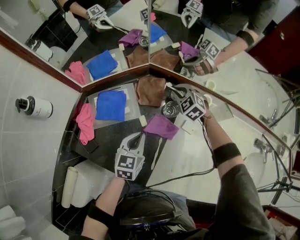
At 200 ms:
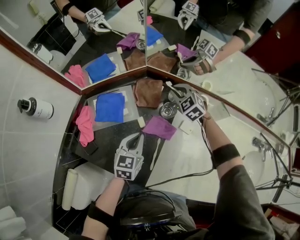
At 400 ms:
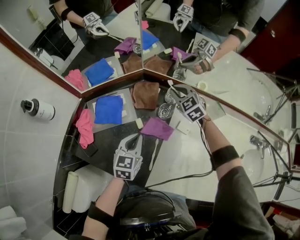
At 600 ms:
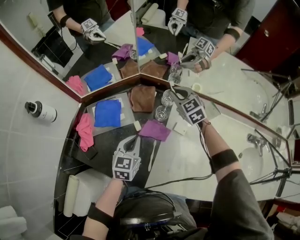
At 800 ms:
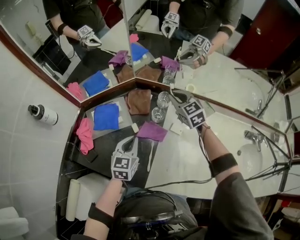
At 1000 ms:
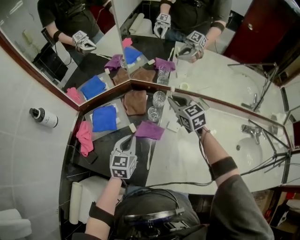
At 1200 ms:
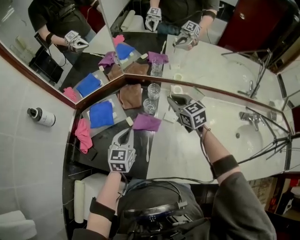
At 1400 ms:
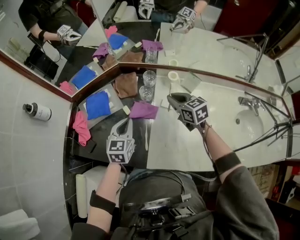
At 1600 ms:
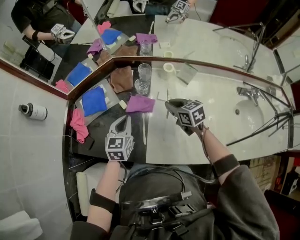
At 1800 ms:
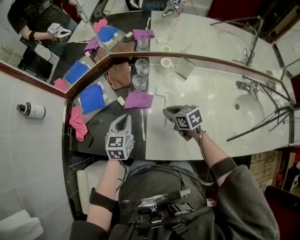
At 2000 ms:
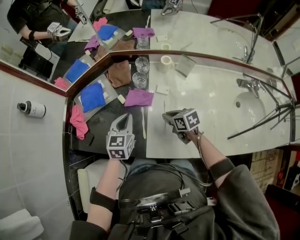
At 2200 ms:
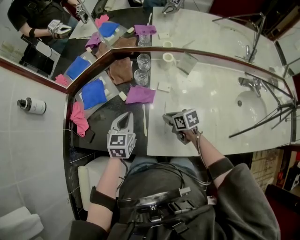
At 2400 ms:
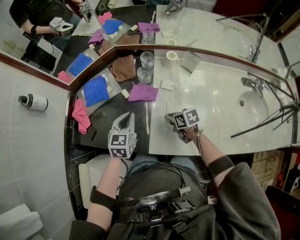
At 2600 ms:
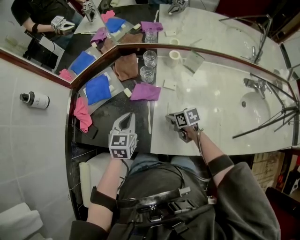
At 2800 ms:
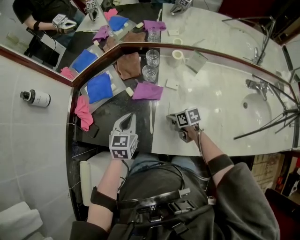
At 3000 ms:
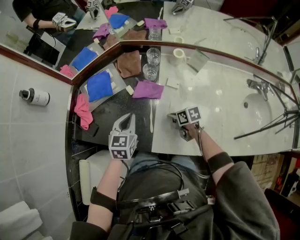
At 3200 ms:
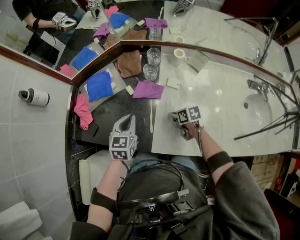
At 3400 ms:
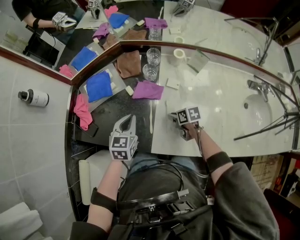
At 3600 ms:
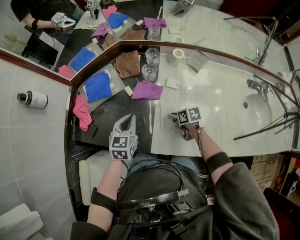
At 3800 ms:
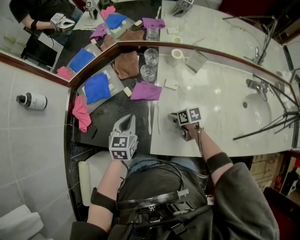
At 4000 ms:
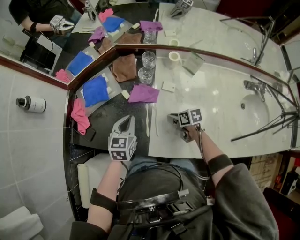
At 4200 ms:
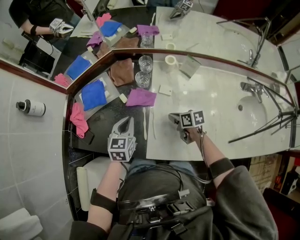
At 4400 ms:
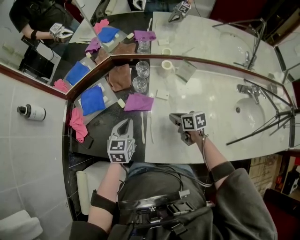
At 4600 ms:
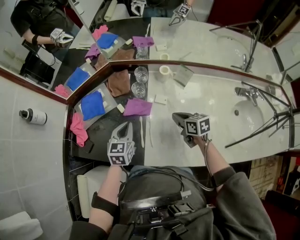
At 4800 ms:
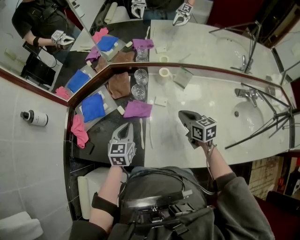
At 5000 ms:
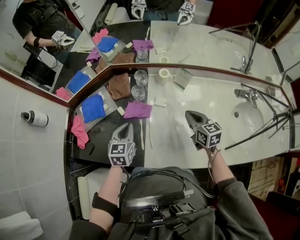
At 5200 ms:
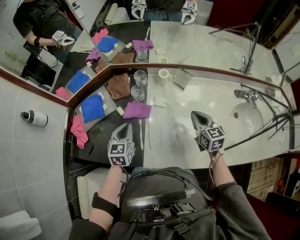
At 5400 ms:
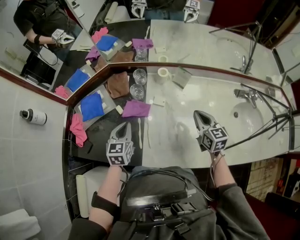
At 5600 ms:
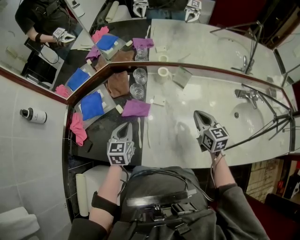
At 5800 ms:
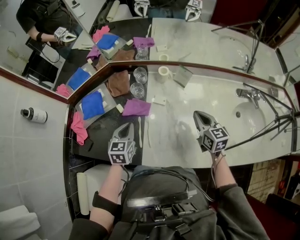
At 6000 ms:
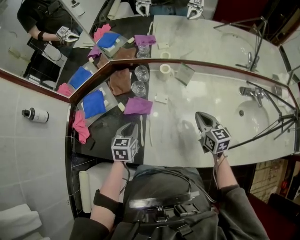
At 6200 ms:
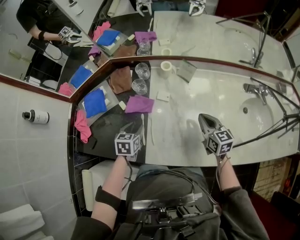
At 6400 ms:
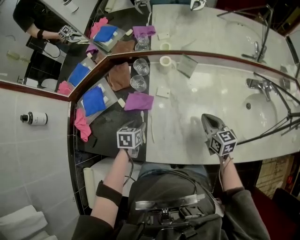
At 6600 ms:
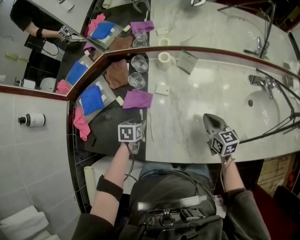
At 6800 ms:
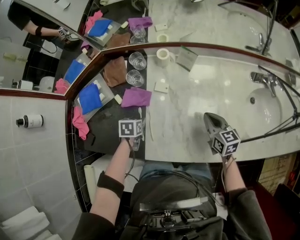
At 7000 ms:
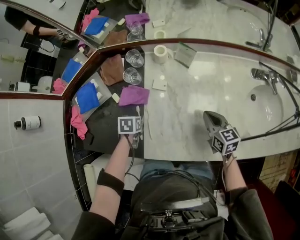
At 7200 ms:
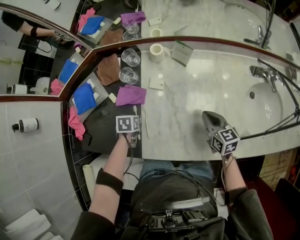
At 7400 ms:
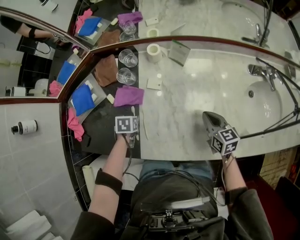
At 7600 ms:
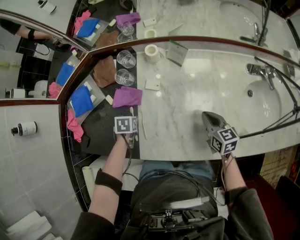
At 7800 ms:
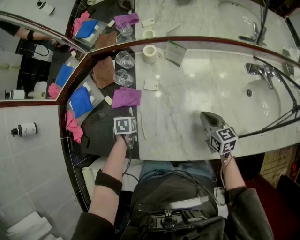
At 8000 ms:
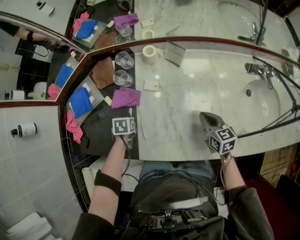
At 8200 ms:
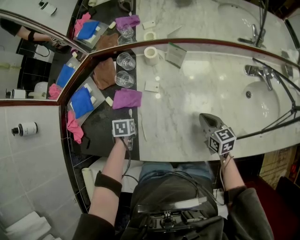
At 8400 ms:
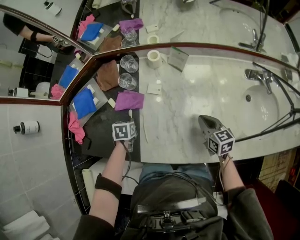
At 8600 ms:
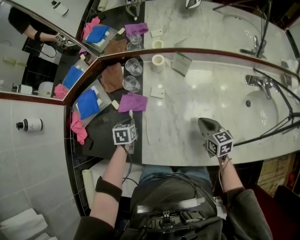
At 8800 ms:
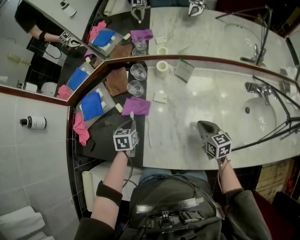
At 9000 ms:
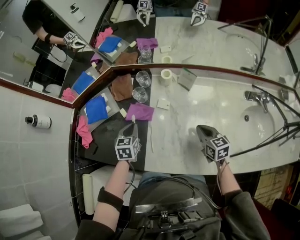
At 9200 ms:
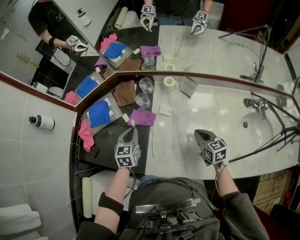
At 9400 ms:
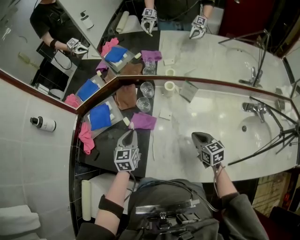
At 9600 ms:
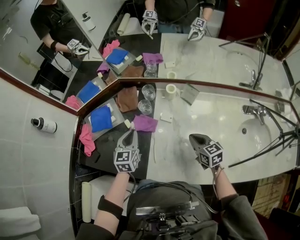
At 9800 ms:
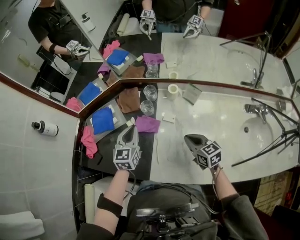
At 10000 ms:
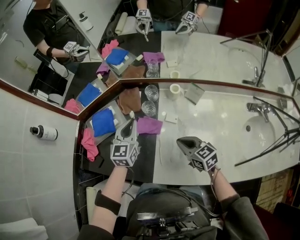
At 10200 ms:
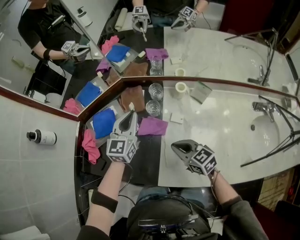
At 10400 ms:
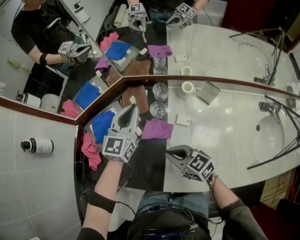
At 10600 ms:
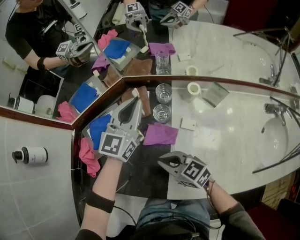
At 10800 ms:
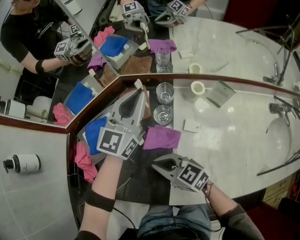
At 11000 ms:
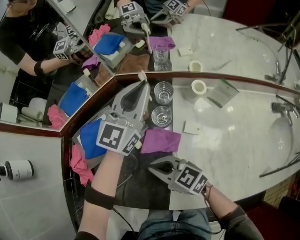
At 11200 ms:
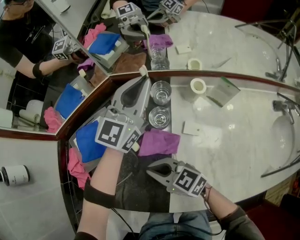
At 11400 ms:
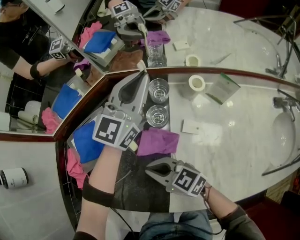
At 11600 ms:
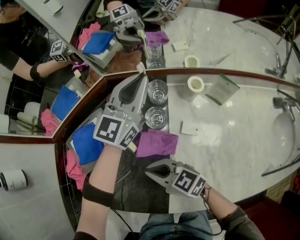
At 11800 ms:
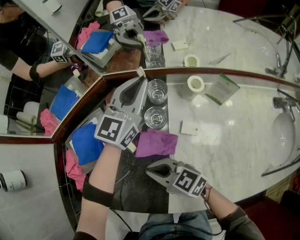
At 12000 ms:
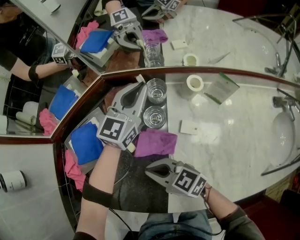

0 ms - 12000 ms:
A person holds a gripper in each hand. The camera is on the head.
0 ms - 1600 ms: The right gripper shifts approximately 25 cm backward, and rotates around the line of its fingers by about 50 degrees, clockwise from behind, while the left gripper ends up about 5 cm from where it was.
1600 ms - 3000 ms: The left gripper ends up some 5 cm from where it was; the right gripper is displaced downward, backward and to the left by some 20 cm, and rotates approximately 30 degrees.
3000 ms - 4400 ms: The right gripper goes approximately 10 cm to the right and upward.
4400 ms - 6000 ms: The right gripper is displaced to the right and upward by roughly 15 cm, and changes its angle by about 30 degrees.
6000 ms - 7600 ms: The left gripper moves downward, some 15 cm, tilts its fingers about 40 degrees downward, and opens. The right gripper shifts roughly 10 cm downward.
7600 ms - 9000 ms: The right gripper shifts by roughly 5 cm; the left gripper goes roughly 15 cm upward, angles its fingers upward, by approximately 30 degrees, and closes up.
9000 ms - 10400 ms: The right gripper travels to the left by some 25 cm, and turns by some 30 degrees; the left gripper shifts roughly 20 cm forward and upward, and tilts its fingers some 40 degrees upward.
10400 ms - 12000 ms: The right gripper shifts some 10 cm downward and to the left; the left gripper moves downward, to the right and forward, approximately 15 cm.

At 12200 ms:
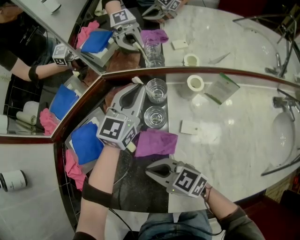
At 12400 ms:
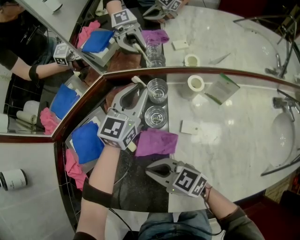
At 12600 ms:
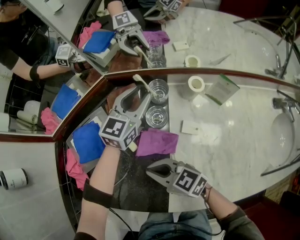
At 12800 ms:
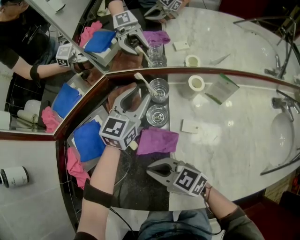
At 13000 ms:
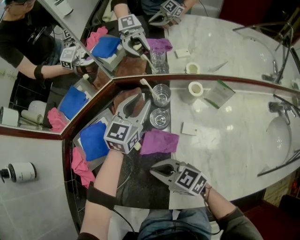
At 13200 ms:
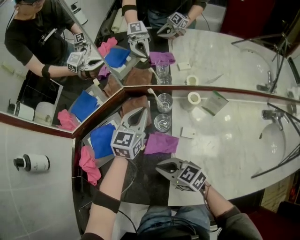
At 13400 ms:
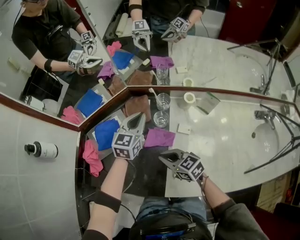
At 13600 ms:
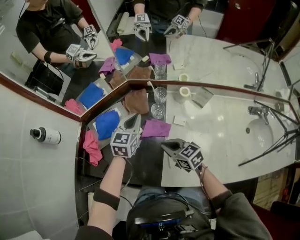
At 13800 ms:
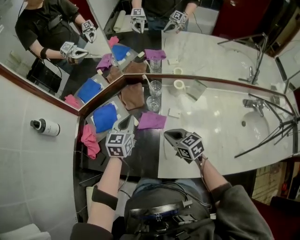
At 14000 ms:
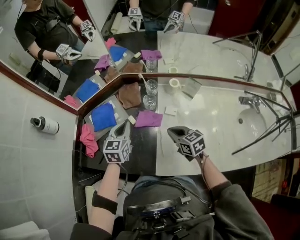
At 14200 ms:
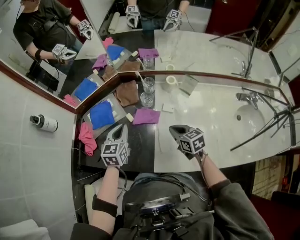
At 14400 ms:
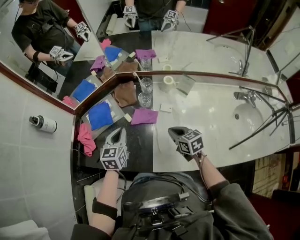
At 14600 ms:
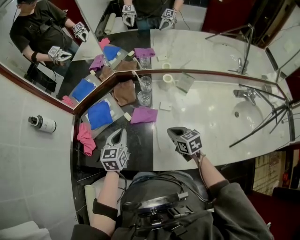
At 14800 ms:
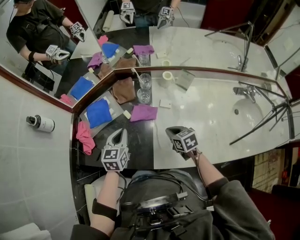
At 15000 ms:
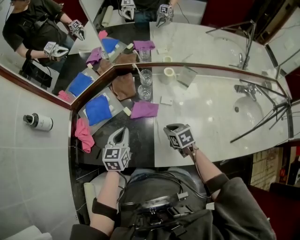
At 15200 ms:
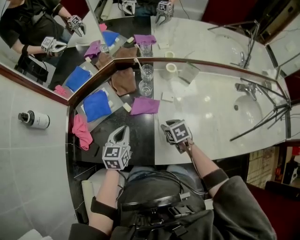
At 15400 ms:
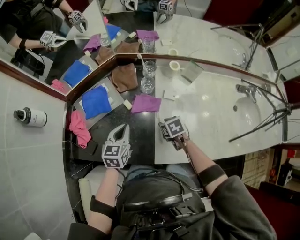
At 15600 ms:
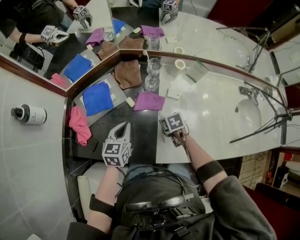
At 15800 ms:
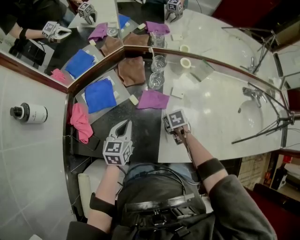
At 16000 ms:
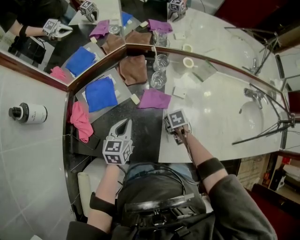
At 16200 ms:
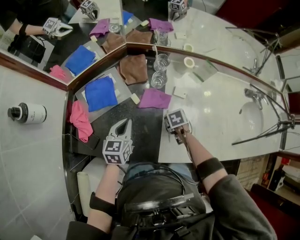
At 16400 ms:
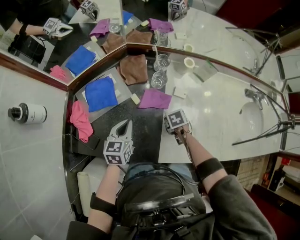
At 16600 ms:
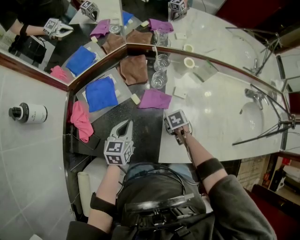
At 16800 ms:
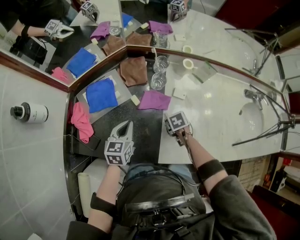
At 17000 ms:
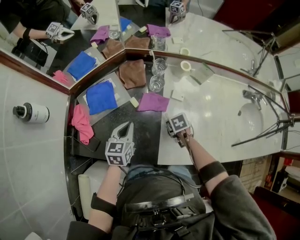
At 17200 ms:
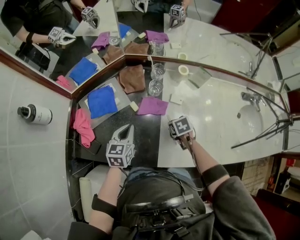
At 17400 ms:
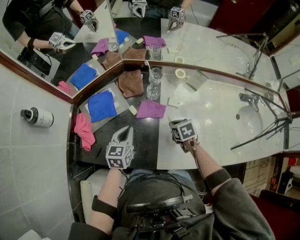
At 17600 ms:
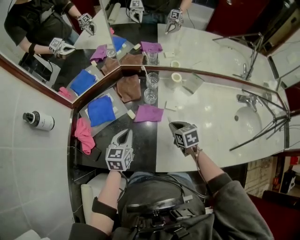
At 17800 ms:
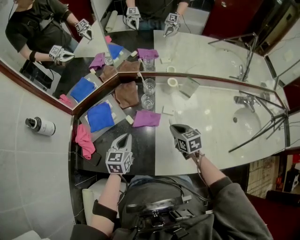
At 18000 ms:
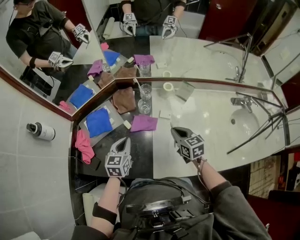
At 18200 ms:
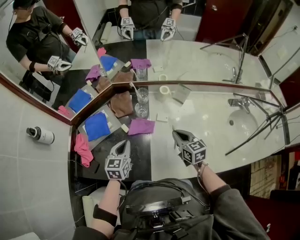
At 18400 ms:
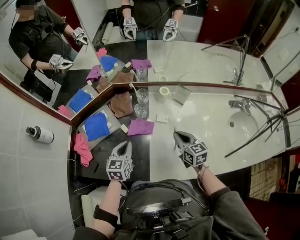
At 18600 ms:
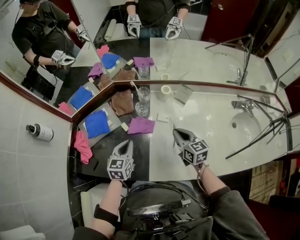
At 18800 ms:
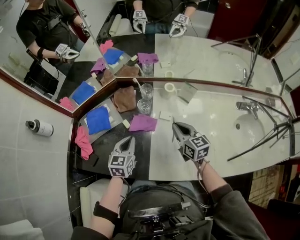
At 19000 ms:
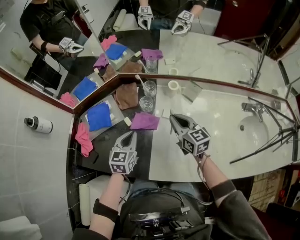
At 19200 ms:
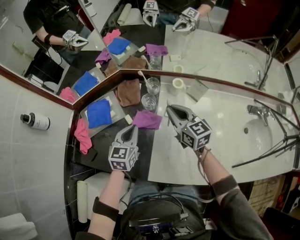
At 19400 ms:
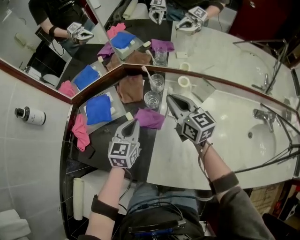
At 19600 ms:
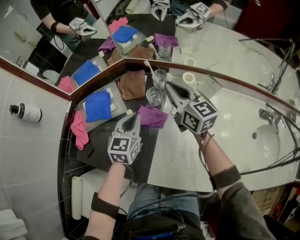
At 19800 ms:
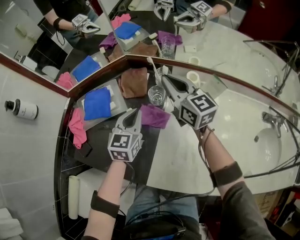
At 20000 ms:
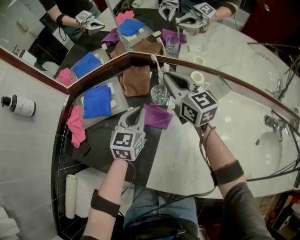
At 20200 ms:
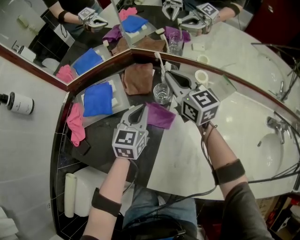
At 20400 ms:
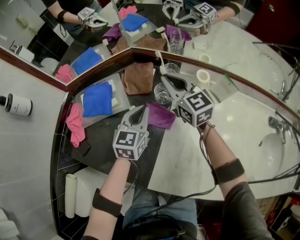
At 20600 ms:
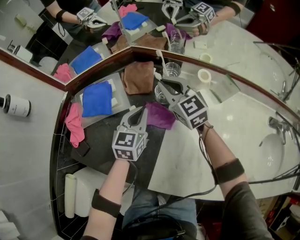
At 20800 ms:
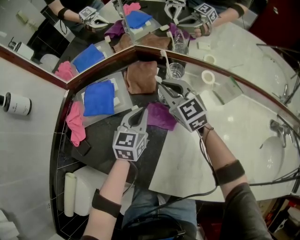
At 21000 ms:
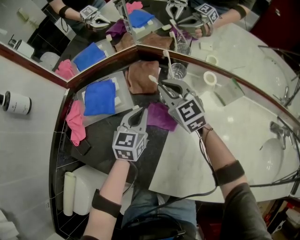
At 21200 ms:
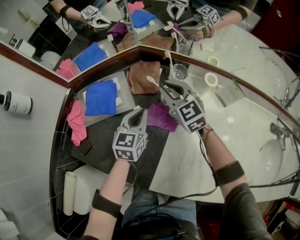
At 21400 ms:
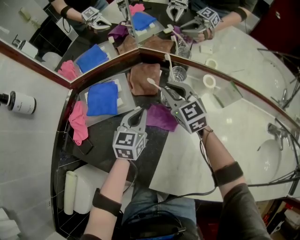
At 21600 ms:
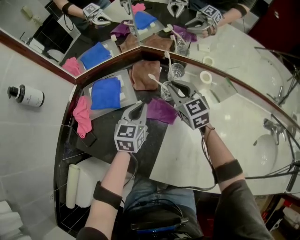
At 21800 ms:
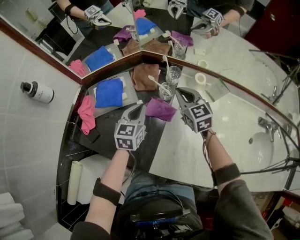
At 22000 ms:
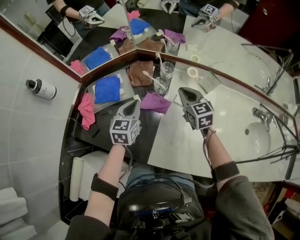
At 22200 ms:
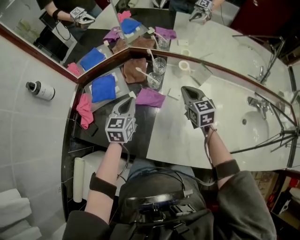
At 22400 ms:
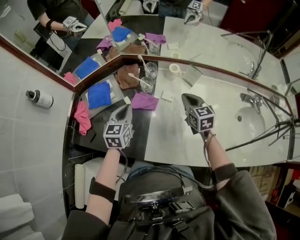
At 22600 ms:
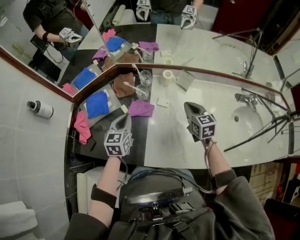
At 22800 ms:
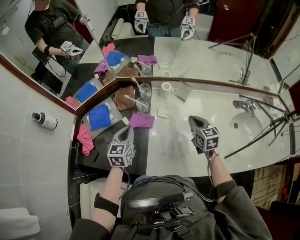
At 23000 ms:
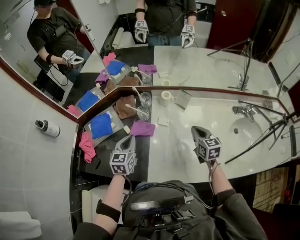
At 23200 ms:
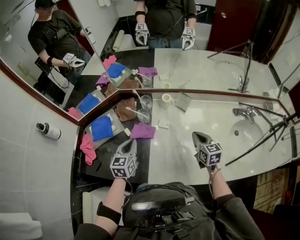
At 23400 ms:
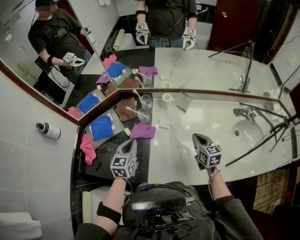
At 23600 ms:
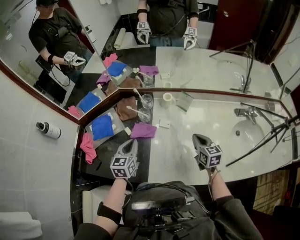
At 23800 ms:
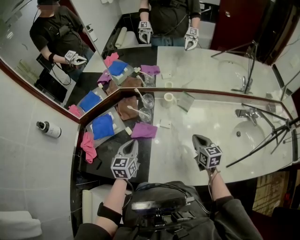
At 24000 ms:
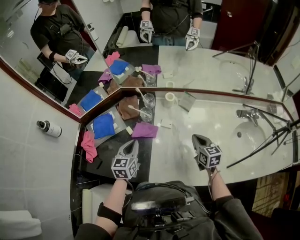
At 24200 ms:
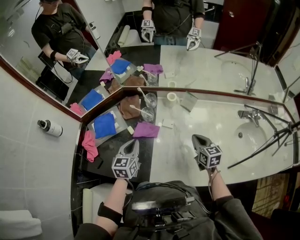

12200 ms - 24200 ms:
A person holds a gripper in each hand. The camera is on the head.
12200 ms - 13800 ms: The right gripper goes roughly 10 cm to the right and upward, and rotates some 20 degrees. Meanwhile the left gripper heads backward, to the left and upward, covering roughly 20 cm, swivels some 30 degrees, and opens and closes again.
13800 ms - 15200 ms: The right gripper moves downward, approximately 10 cm, swivels approximately 30 degrees, and opens up. Meanwhile the left gripper shifts about 10 cm backward.
15200 ms - 16600 ms: The left gripper shifts by roughly 5 cm; the right gripper goes about 5 cm downward, and closes its fingers.
16600 ms - 18200 ms: The left gripper is displaced upward by roughly 5 cm, while the right gripper moves upward, some 20 cm, and angles its fingers upward, by about 50 degrees.
18200 ms - 19800 ms: The right gripper heads forward and to the left, covering about 25 cm, and changes its angle by approximately 30 degrees, while the left gripper shifts approximately 10 cm forward.
19800 ms - 21200 ms: The left gripper goes about 5 cm downward, while the right gripper goes about 15 cm downward and to the left, and changes its angle by approximately 30 degrees.
21200 ms - 22600 ms: The left gripper goes roughly 15 cm upward and backward. The right gripper is displaced to the right and backward by roughly 30 cm, and turns by about 40 degrees.
22600 ms - 24200 ms: The right gripper goes some 5 cm backward.
